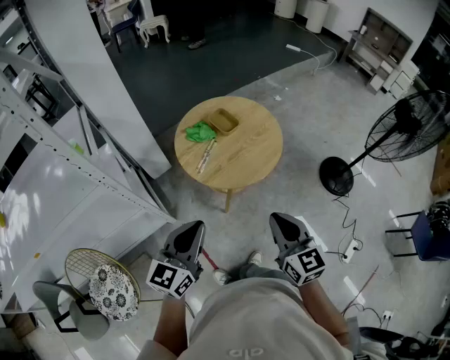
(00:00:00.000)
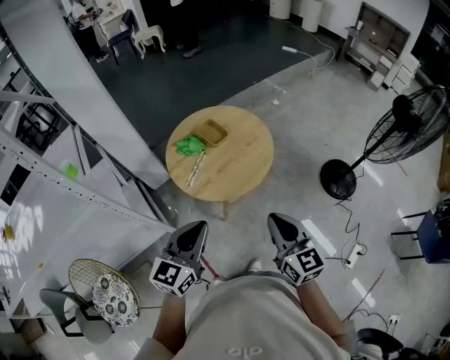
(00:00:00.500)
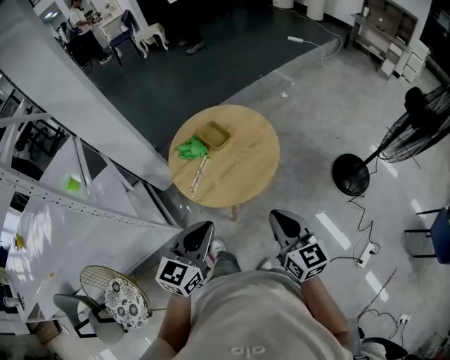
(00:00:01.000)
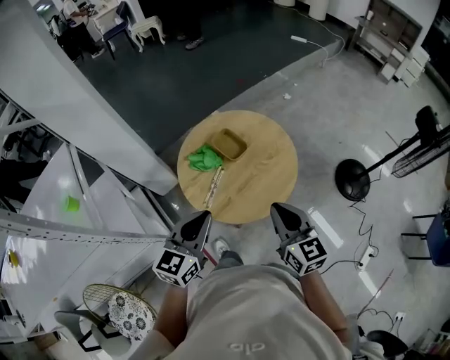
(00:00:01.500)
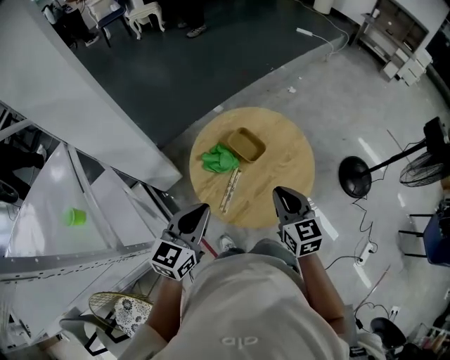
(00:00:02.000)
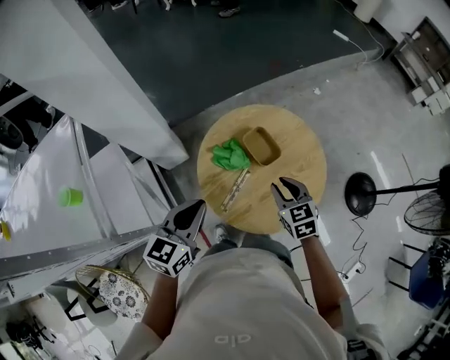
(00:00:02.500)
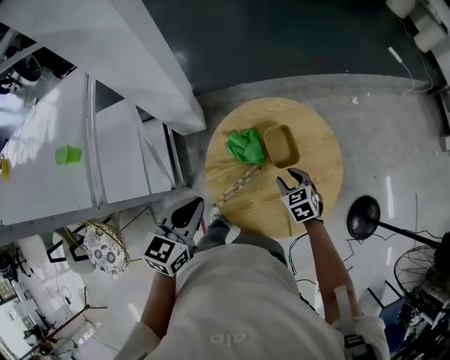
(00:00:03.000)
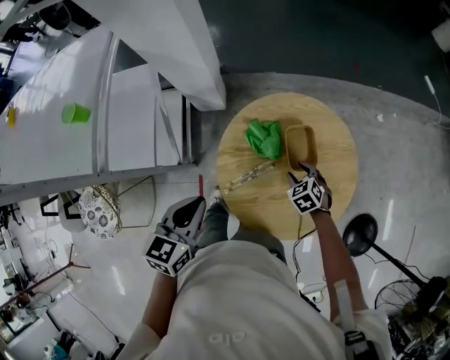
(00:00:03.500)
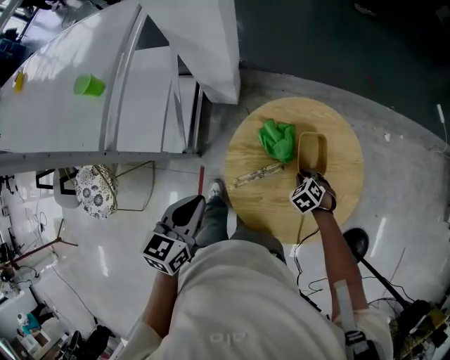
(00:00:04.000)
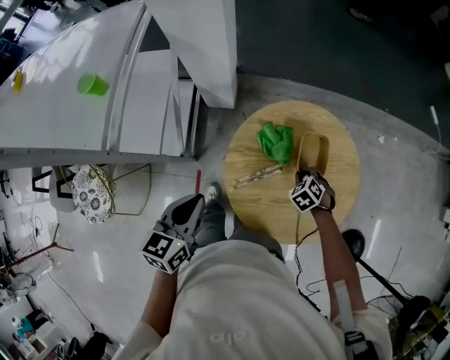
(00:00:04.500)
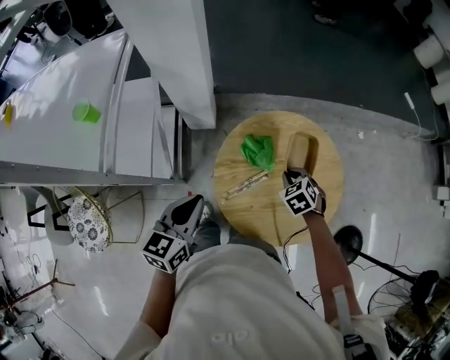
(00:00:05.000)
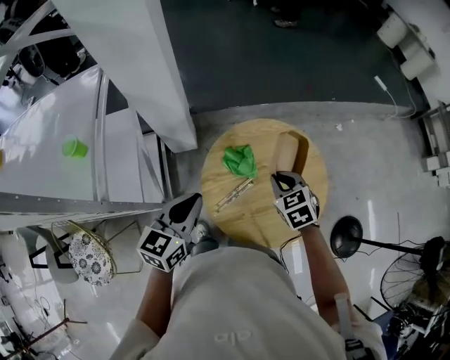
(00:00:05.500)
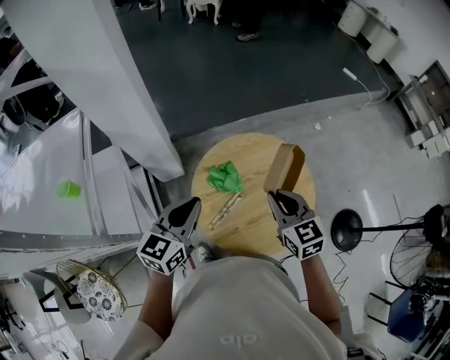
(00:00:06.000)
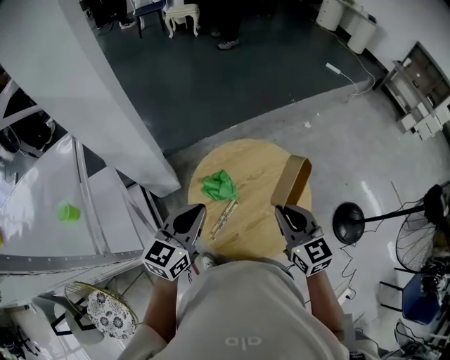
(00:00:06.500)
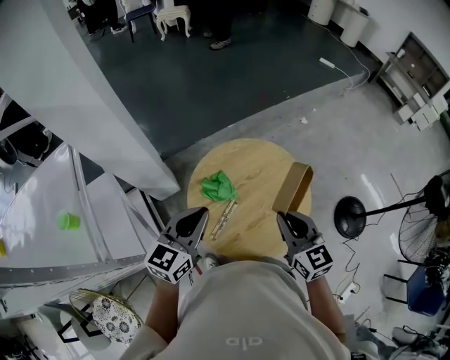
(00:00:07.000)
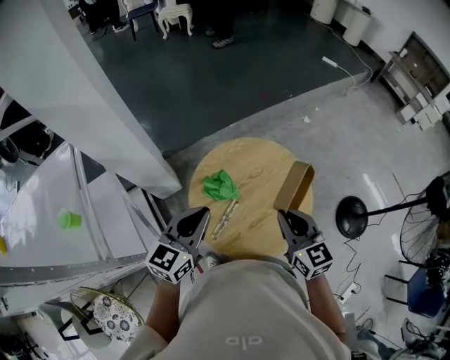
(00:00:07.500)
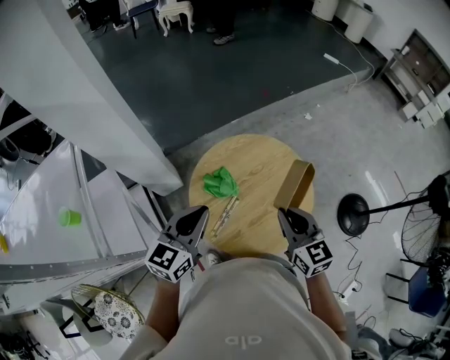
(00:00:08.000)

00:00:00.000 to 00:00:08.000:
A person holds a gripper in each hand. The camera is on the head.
00:00:00.000 to 00:00:02.000: Both grippers travel together forward, about 30 cm.
00:00:02.000 to 00:00:04.000: The right gripper moves downward, some 30 cm, angles its fingers downward, by some 50 degrees, and opens, then closes again, while the left gripper shifts approximately 10 cm downward, and rotates about 50 degrees.
00:00:04.000 to 00:00:06.000: The left gripper travels upward by about 10 cm, and swivels roughly 40 degrees; the right gripper moves upward, roughly 35 cm, and tips its fingers upward by approximately 50 degrees.
00:00:06.000 to 00:00:08.000: The right gripper goes about 5 cm to the right.

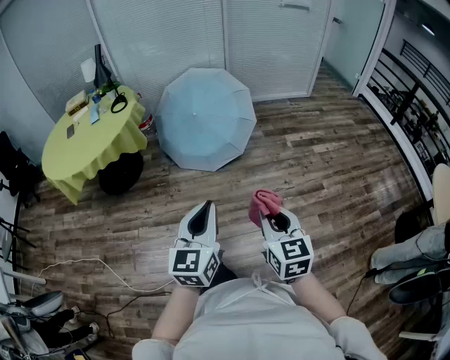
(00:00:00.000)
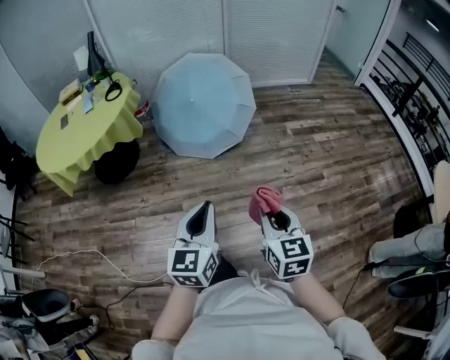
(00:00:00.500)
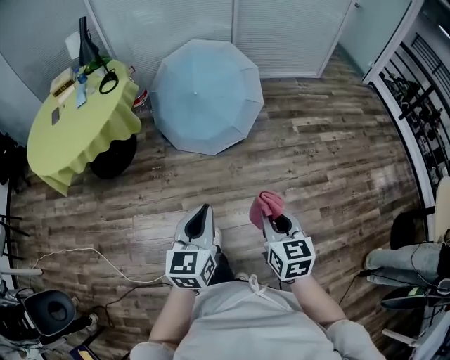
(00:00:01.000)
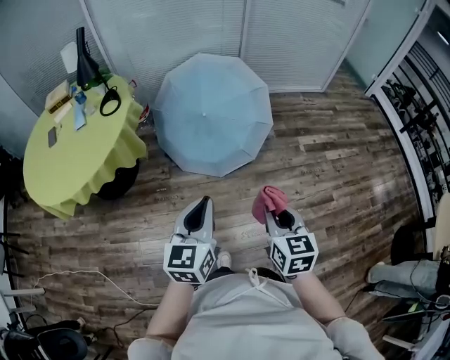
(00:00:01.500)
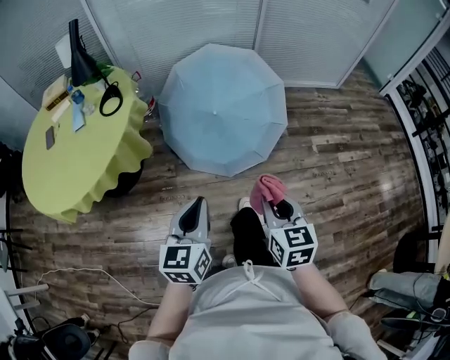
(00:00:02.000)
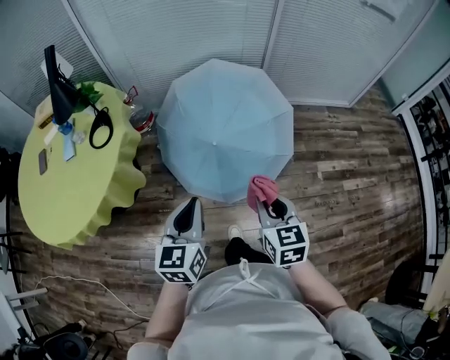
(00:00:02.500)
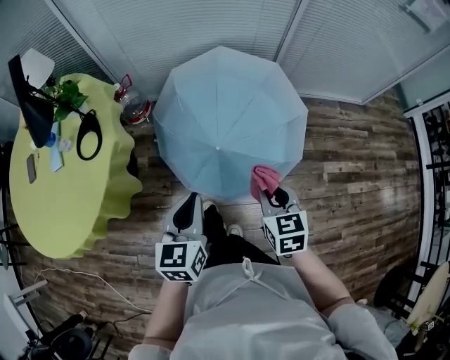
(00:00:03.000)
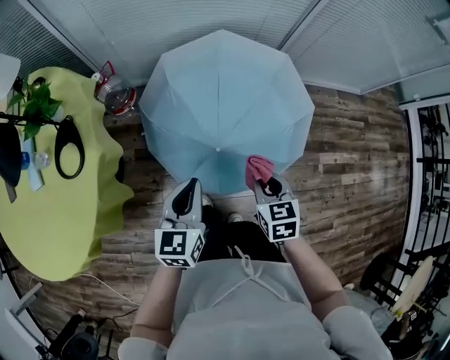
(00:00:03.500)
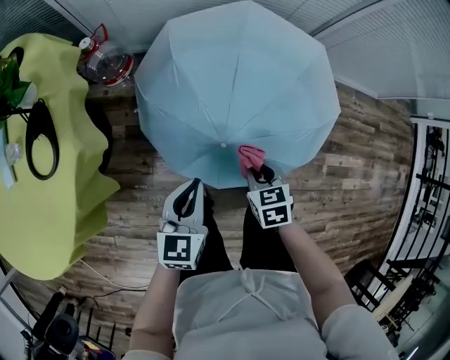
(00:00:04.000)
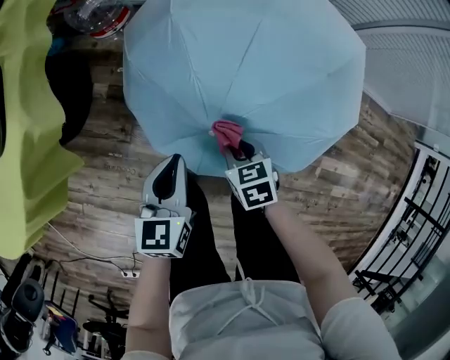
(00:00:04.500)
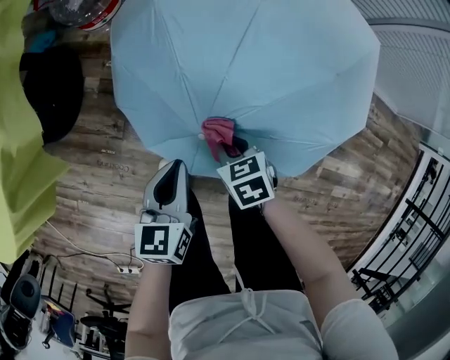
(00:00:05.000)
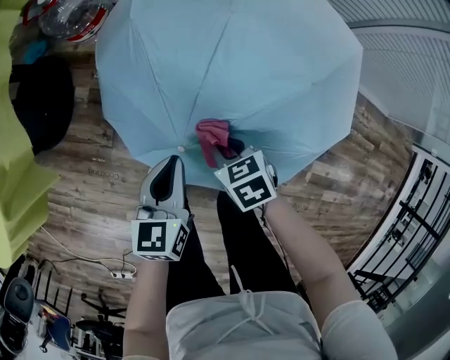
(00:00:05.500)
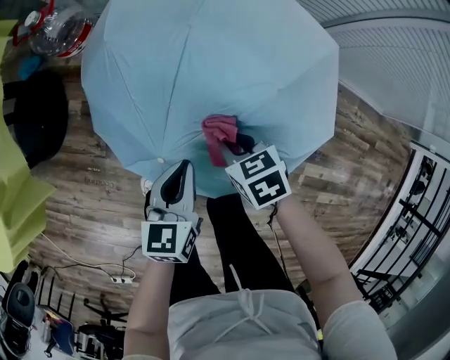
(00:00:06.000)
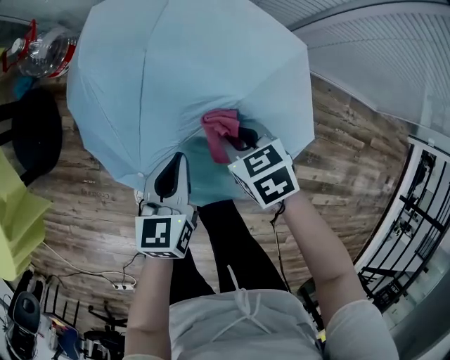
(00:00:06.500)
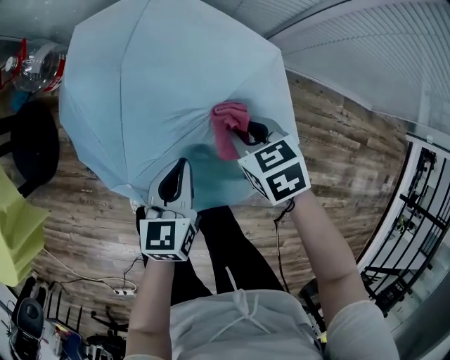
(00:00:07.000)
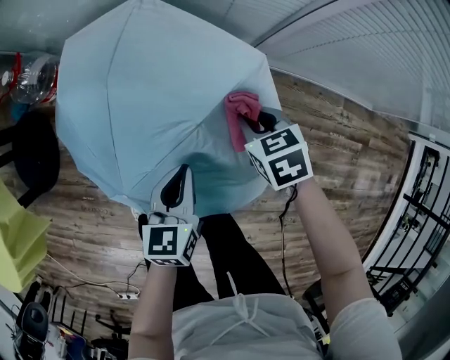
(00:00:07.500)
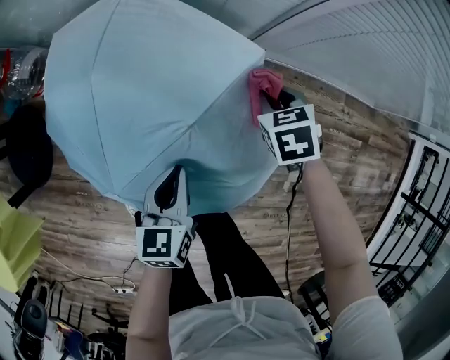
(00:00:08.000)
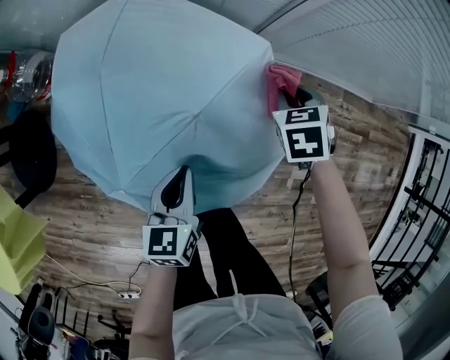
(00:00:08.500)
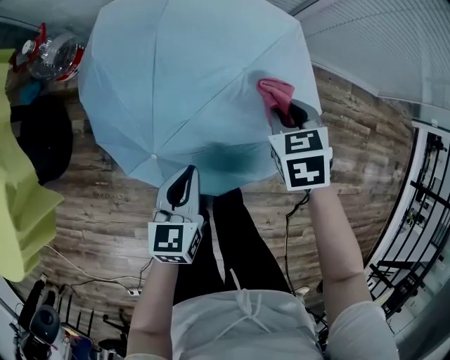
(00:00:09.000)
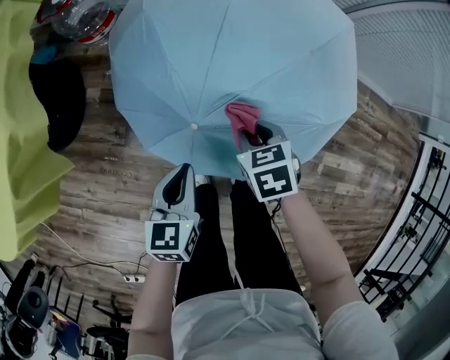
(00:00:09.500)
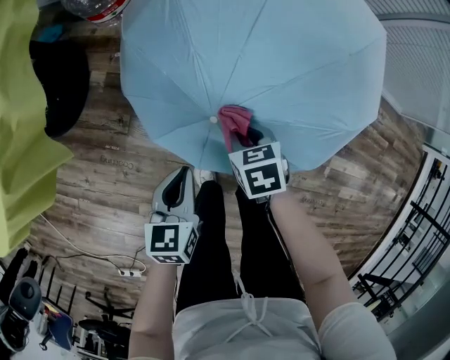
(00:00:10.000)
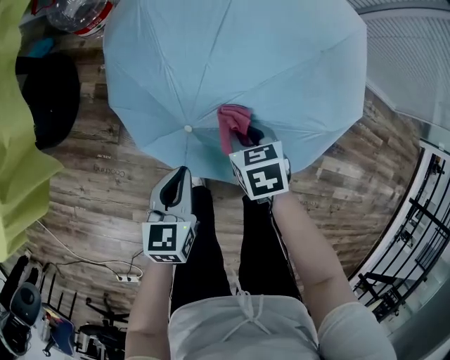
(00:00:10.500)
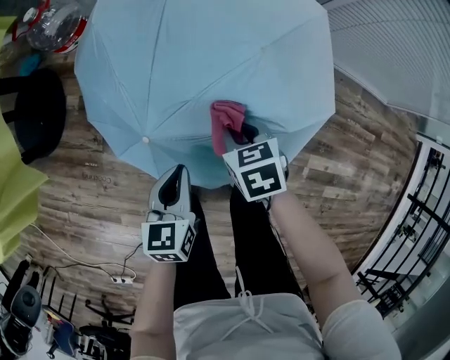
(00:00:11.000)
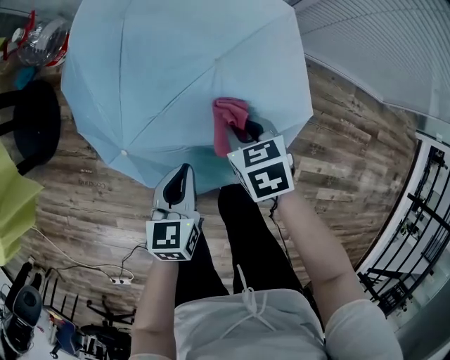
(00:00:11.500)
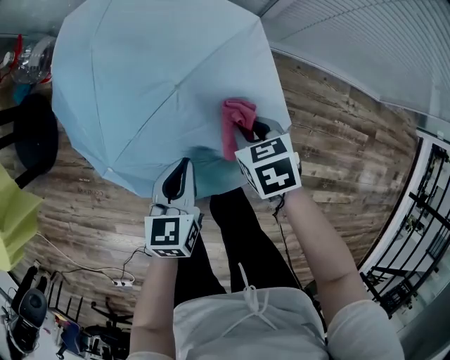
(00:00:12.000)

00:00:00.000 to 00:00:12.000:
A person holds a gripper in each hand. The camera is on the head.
00:00:00.000 to 00:00:02.000: The pair of grippers is taken forward and to the left, roughly 50 cm.
00:00:02.000 to 00:00:04.000: The two grippers travel together, forward, roughly 60 cm. The two grippers go approximately 35 cm downward. The right gripper changes its angle by approximately 40 degrees.
00:00:04.000 to 00:00:06.000: The right gripper moves approximately 20 cm, and turns by approximately 30 degrees, while the left gripper ends up some 25 cm from where it was.
00:00:06.000 to 00:00:08.000: The left gripper shifts by about 20 cm, while the right gripper ends up about 35 cm from where it was, and rotates about 20 degrees.
00:00:08.000 to 00:00:10.000: The left gripper ends up some 40 cm from where it was, while the right gripper shifts by approximately 50 cm.
00:00:10.000 to 00:00:12.000: The grippers both shift to the right by approximately 40 cm.

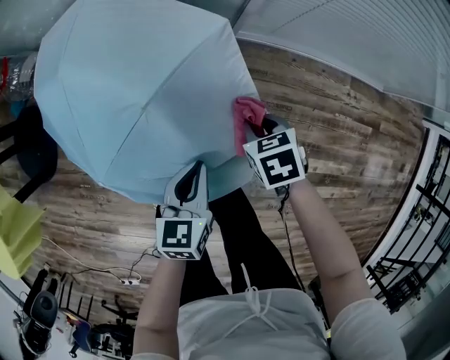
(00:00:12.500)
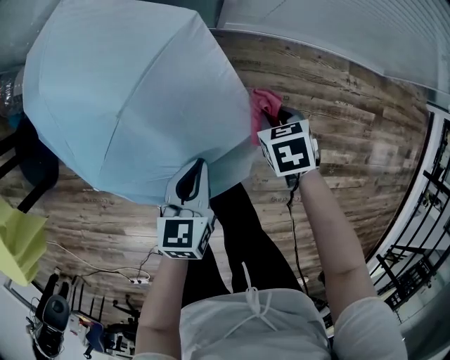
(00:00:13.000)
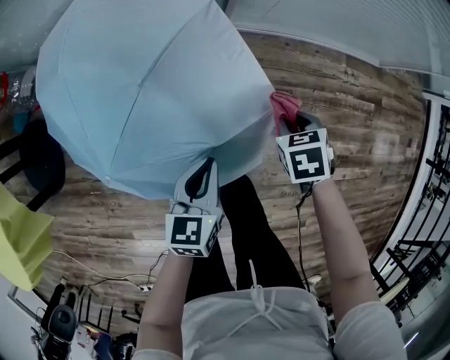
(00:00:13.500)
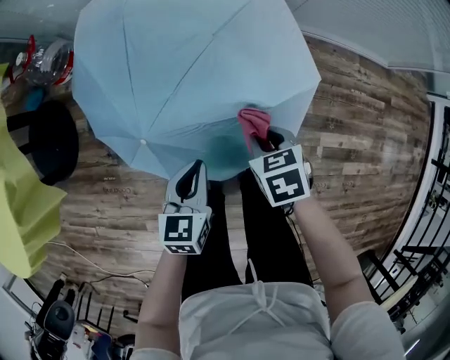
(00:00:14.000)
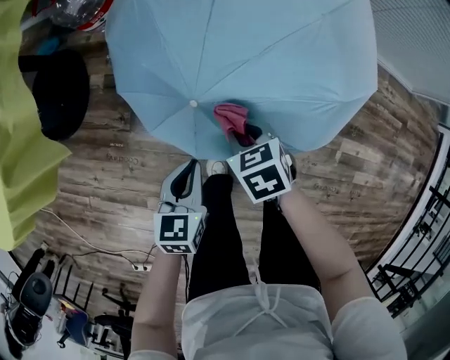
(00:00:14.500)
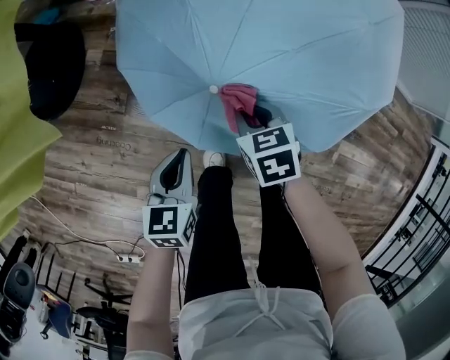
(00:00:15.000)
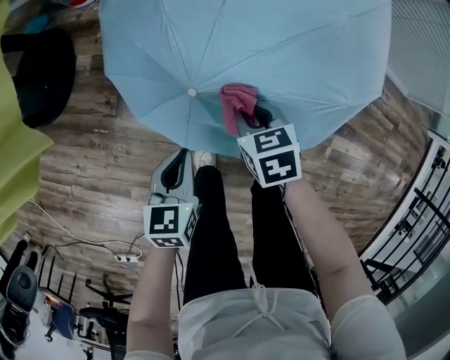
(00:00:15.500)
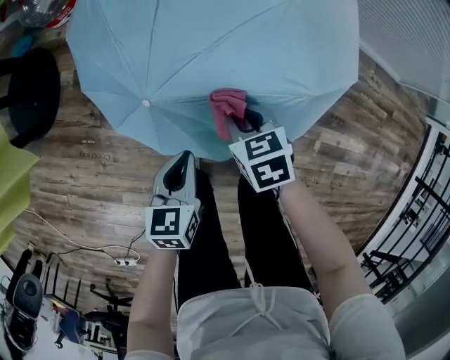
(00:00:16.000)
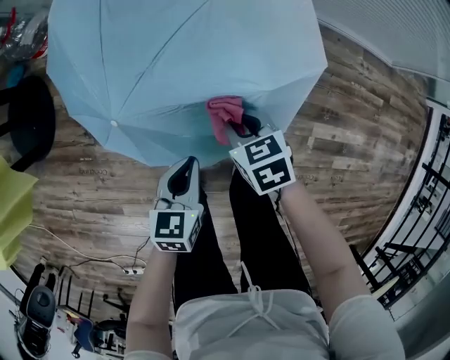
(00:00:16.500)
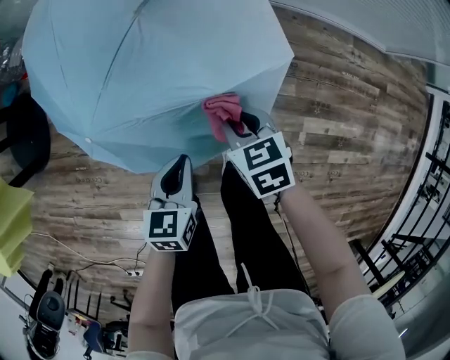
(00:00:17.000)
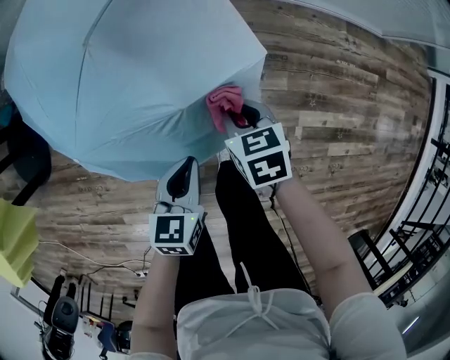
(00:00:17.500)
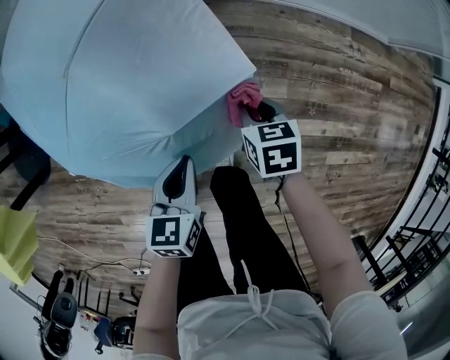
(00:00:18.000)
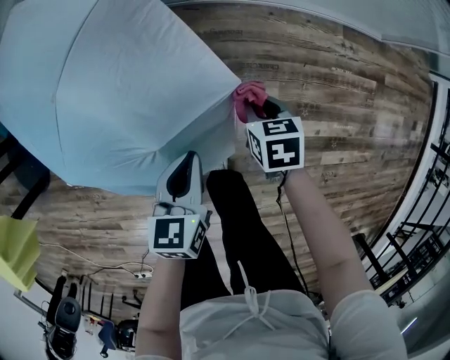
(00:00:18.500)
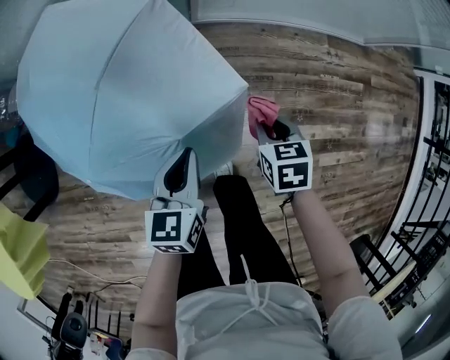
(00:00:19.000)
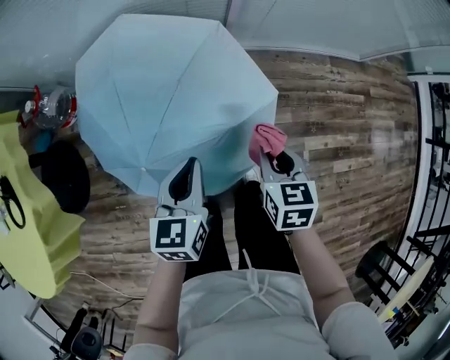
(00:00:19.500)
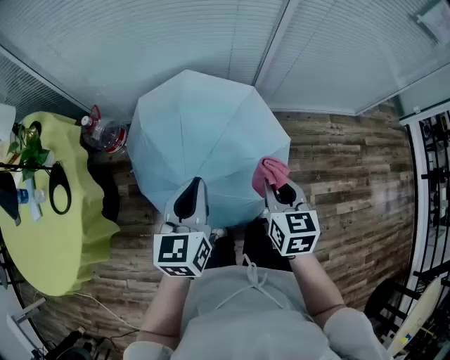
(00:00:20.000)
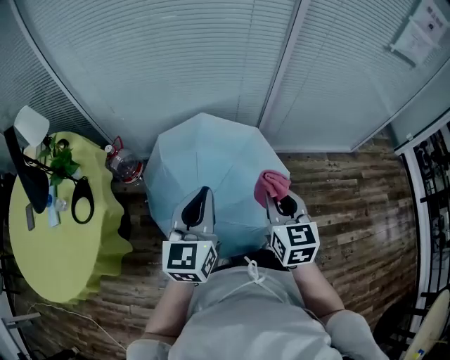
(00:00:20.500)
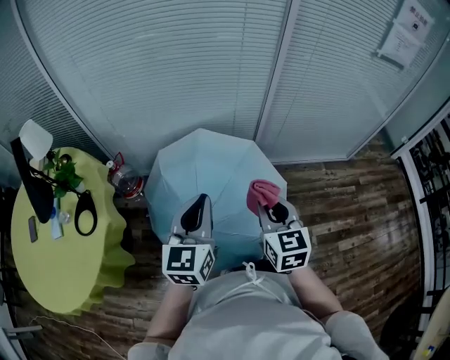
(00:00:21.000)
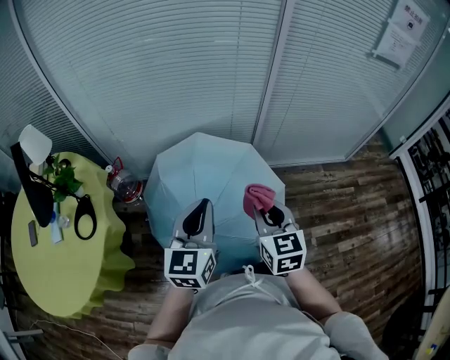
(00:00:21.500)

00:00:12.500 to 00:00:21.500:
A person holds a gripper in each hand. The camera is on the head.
00:00:12.500 to 00:00:14.500: Both grippers are carried some 40 cm.
00:00:14.500 to 00:00:17.000: The two grippers go roughly 30 cm to the right.
00:00:17.000 to 00:00:19.500: Both grippers travel together upward, about 25 cm. The right gripper rotates roughly 30 degrees.
00:00:19.500 to 00:00:21.500: The right gripper is displaced upward and to the left by approximately 40 cm, and rotates roughly 30 degrees. Meanwhile the left gripper heads upward, covering approximately 35 cm, and changes its angle by approximately 30 degrees.
